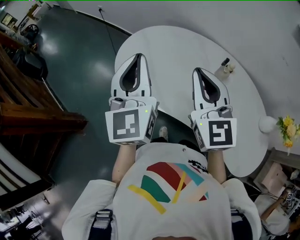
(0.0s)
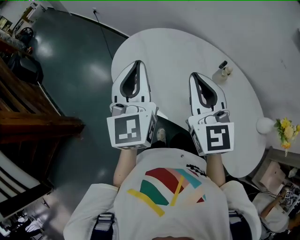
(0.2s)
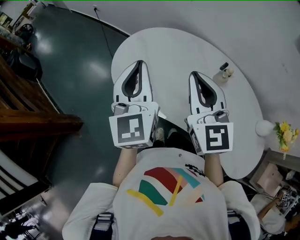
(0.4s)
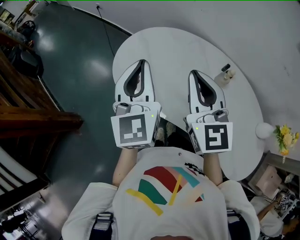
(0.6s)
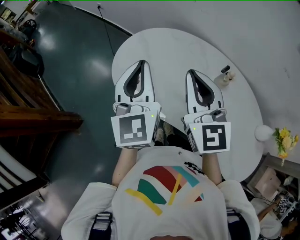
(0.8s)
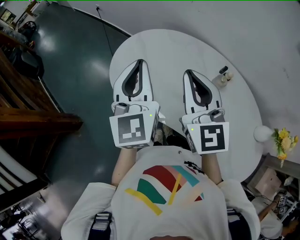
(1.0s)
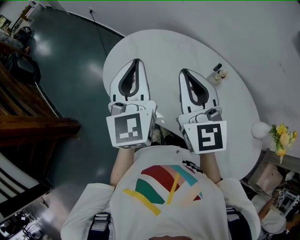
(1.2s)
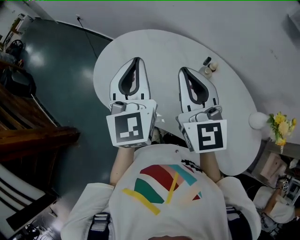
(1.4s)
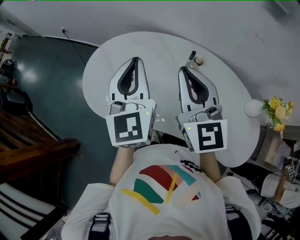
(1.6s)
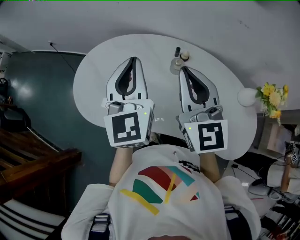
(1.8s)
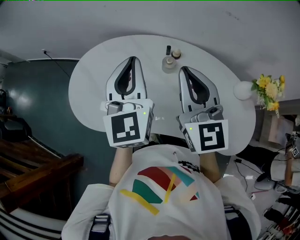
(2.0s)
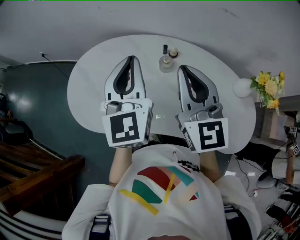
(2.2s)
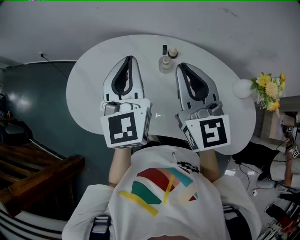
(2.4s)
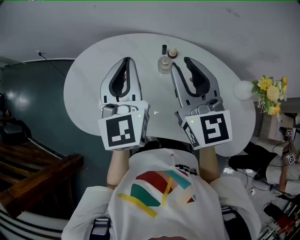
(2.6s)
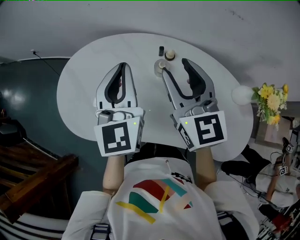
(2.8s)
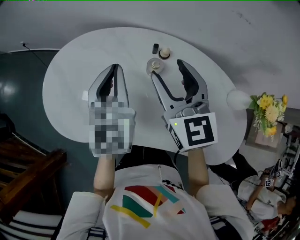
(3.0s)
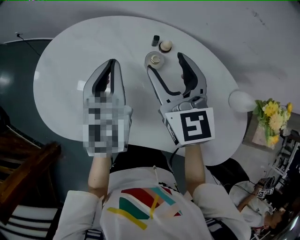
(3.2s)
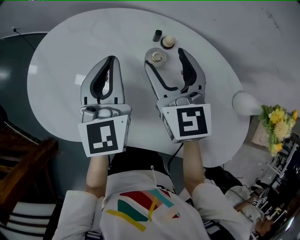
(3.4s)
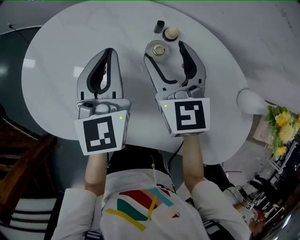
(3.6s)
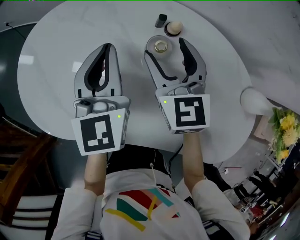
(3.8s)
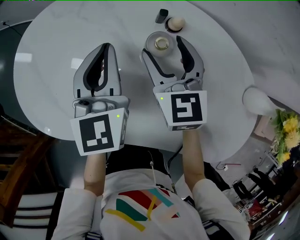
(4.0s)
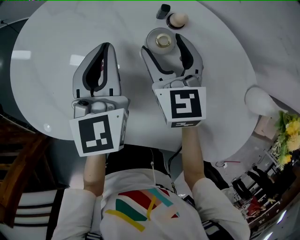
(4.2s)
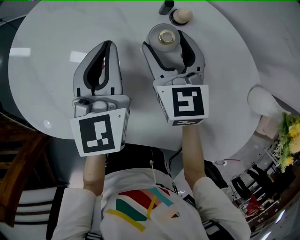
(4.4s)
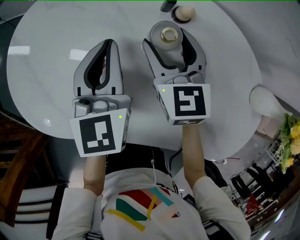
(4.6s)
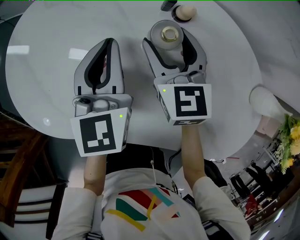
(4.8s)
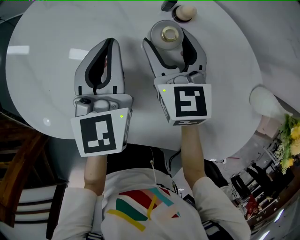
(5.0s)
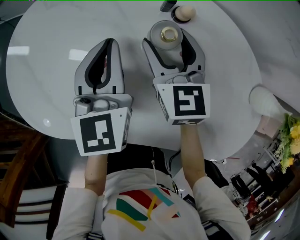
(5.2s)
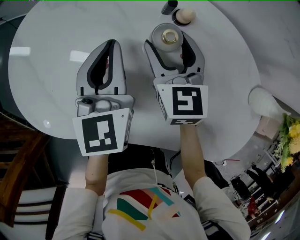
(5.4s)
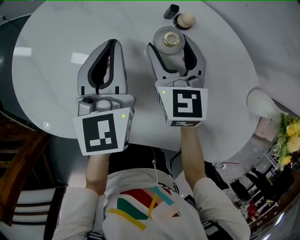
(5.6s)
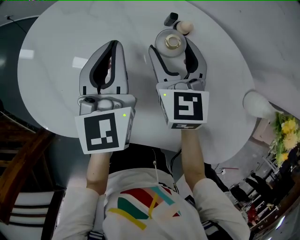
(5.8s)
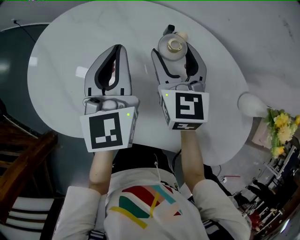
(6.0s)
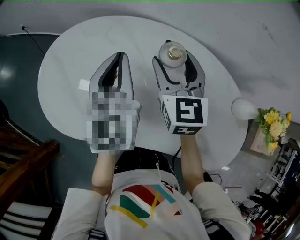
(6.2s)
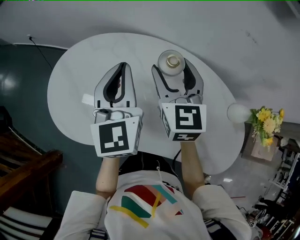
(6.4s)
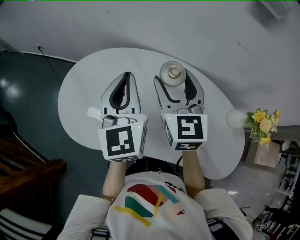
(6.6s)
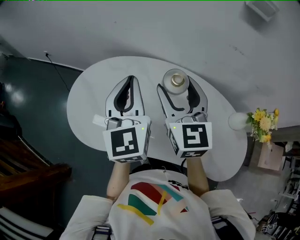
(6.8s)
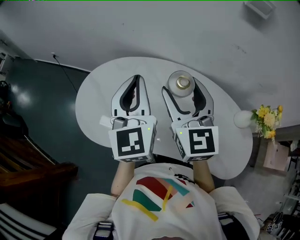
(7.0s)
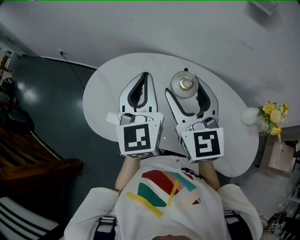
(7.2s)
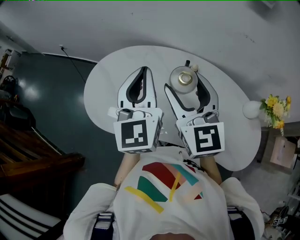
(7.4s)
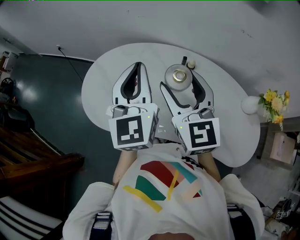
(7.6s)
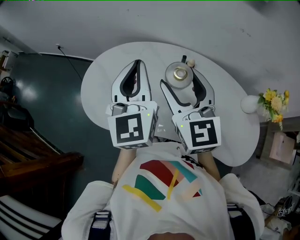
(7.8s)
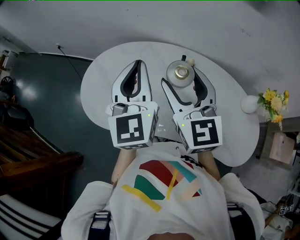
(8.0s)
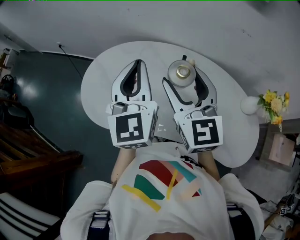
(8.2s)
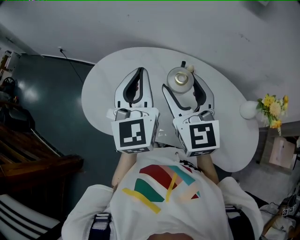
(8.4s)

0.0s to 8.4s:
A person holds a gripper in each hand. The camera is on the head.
0.0s to 1.4s: The right gripper travels to the right by about 5 cm. The left gripper is displaced to the right by approximately 10 cm.
1.4s to 2.8s: The left gripper moves to the right and forward, some 20 cm; the right gripper travels to the right by roughly 15 cm, and opens up.
2.8s to 4.2s: The grippers both shift downward by approximately 25 cm. The right gripper opens.
4.2s to 5.6s: The grippers stay close to where they were, moving slightly.
5.6s to 7.0s: Both grippers move upward, roughly 30 cm. The right gripper rotates roughly 20 degrees, while the left gripper swivels approximately 20 degrees.
7.0s to 8.4s: The right gripper ends up approximately 5 cm from where it was.

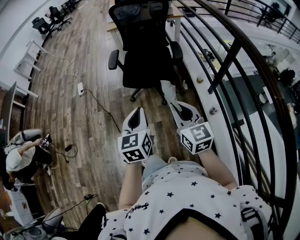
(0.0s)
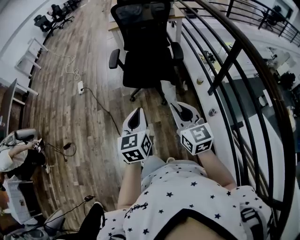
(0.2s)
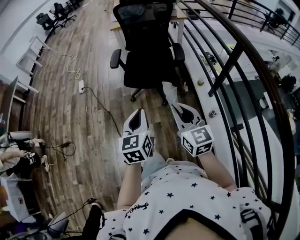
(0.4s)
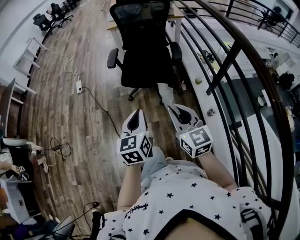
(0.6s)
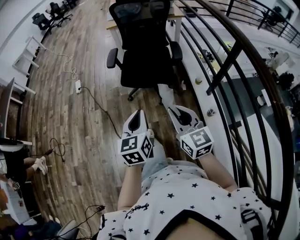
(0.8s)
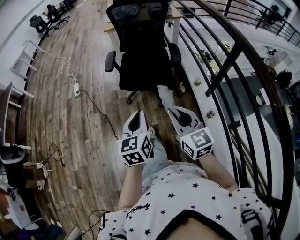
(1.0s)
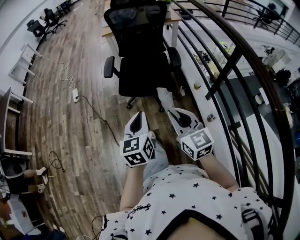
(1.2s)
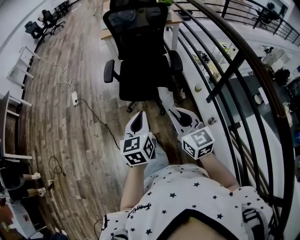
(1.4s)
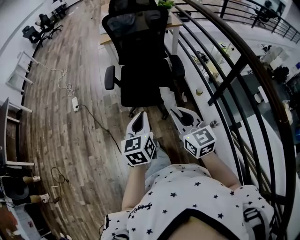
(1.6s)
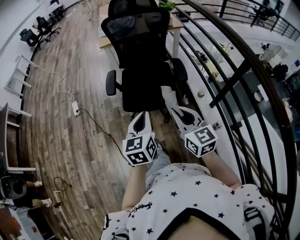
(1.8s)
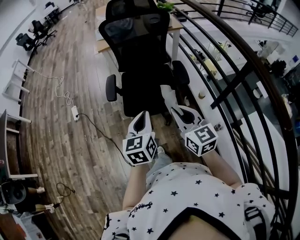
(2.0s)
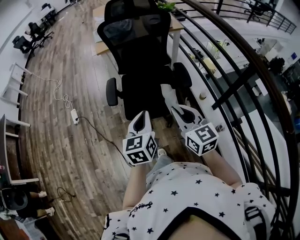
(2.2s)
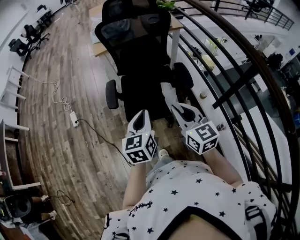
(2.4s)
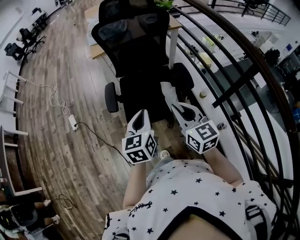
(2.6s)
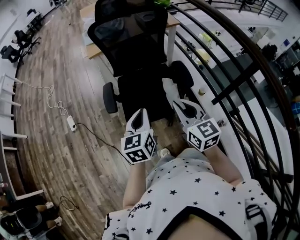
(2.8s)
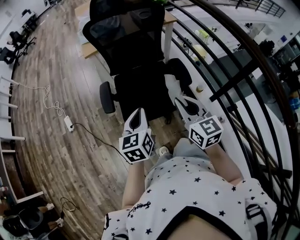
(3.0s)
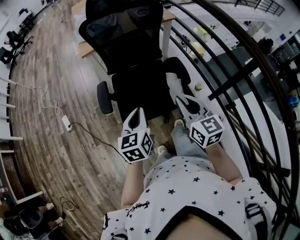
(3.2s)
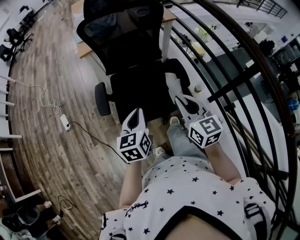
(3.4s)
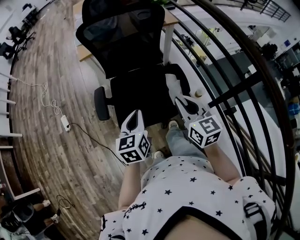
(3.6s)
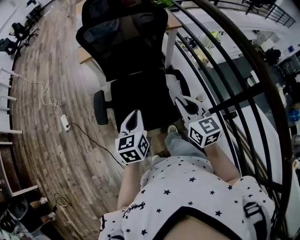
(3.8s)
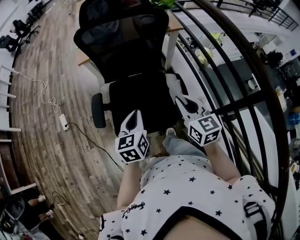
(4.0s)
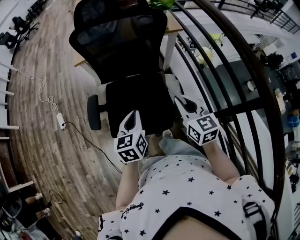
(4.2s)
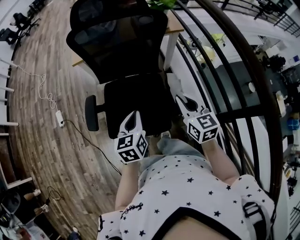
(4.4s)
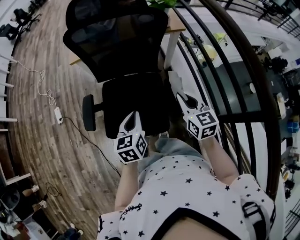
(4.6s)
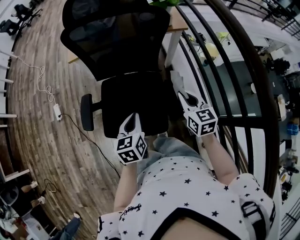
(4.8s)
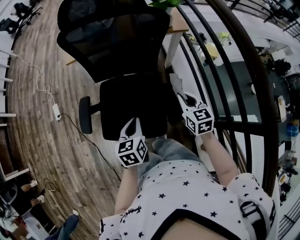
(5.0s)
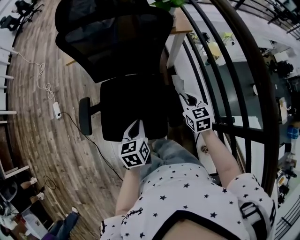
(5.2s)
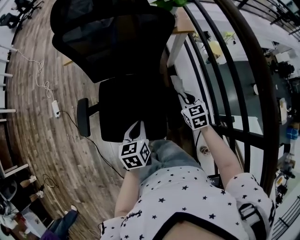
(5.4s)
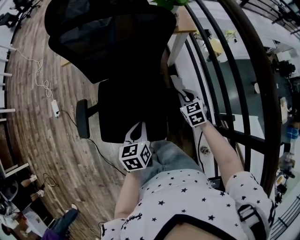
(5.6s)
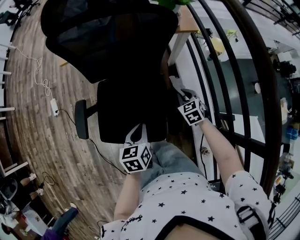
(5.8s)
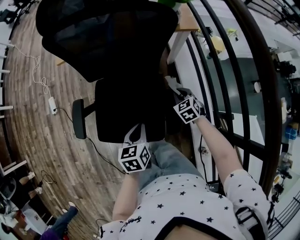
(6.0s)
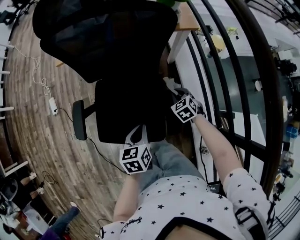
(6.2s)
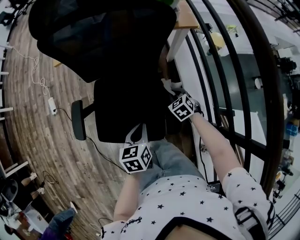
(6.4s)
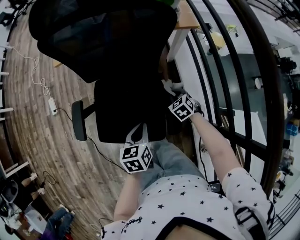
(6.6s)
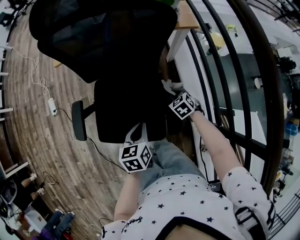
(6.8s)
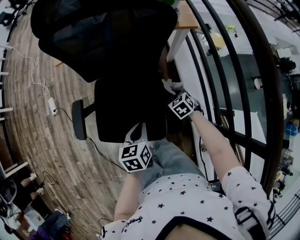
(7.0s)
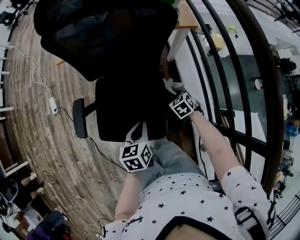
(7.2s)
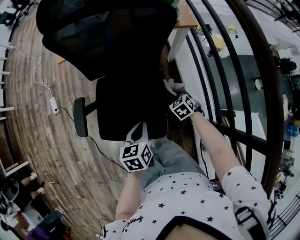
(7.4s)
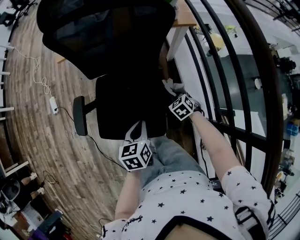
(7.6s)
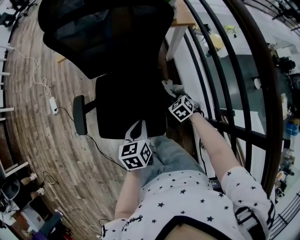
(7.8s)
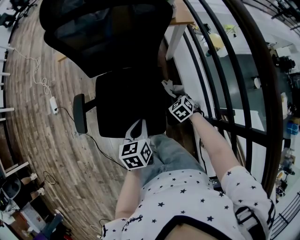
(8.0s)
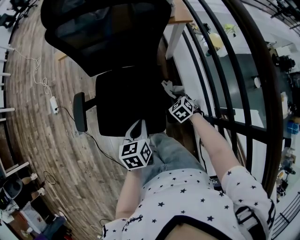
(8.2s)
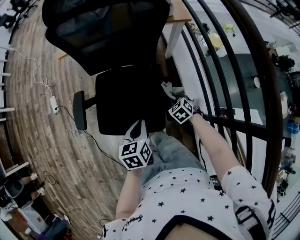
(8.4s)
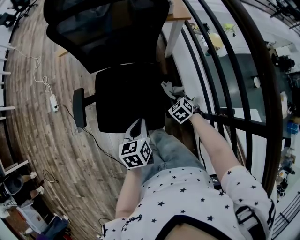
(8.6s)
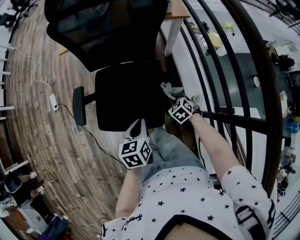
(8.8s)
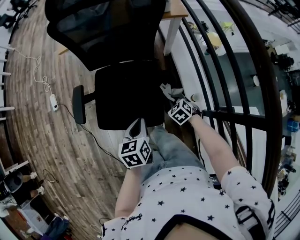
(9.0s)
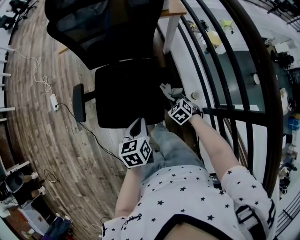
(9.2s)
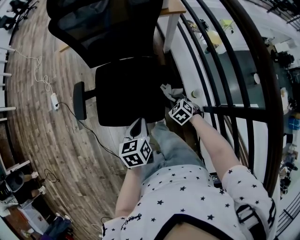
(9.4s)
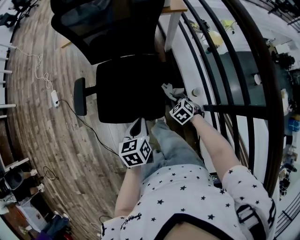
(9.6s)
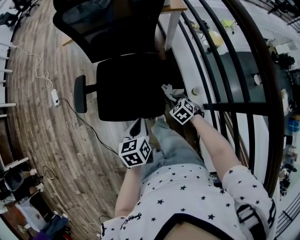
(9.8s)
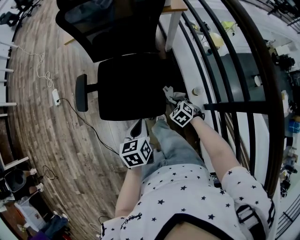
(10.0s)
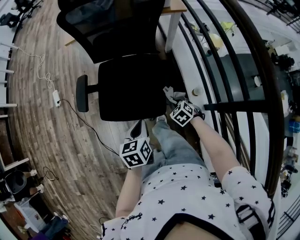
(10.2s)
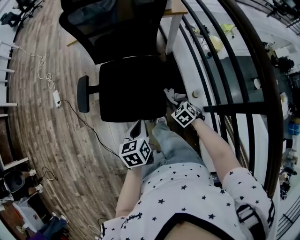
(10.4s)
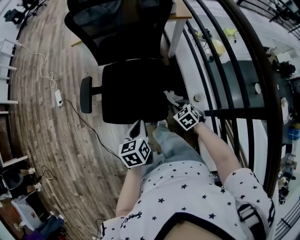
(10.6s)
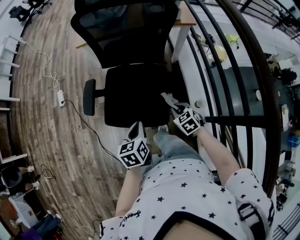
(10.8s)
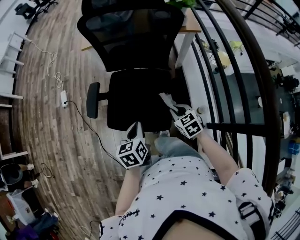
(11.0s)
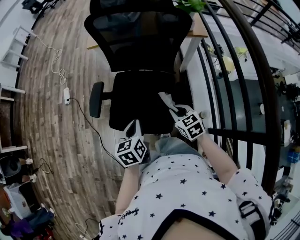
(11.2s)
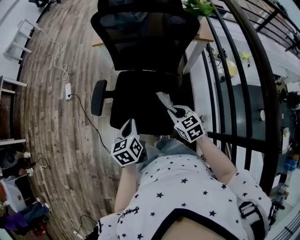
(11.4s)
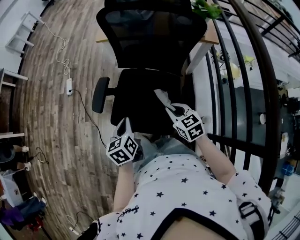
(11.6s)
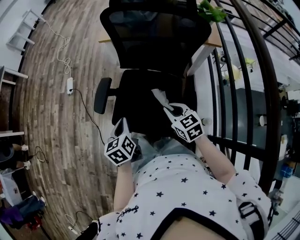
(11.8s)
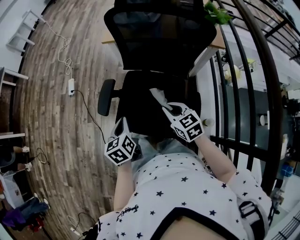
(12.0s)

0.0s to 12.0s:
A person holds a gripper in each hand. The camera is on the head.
0.0s to 1.6s: The grippers both shift forward by roughly 15 cm.
1.6s to 3.0s: Both grippers move forward, about 20 cm.
3.0s to 4.4s: Both grippers move forward and to the right, roughly 20 cm.
4.4s to 6.0s: The right gripper goes some 30 cm downward and forward, and points its fingers approximately 30 degrees further downward, while the left gripper shifts some 10 cm downward and to the right.
6.0s to 7.6s: The right gripper ends up some 5 cm from where it was.
7.6s to 9.0s: The right gripper shifts some 10 cm backward; the left gripper moves backward, approximately 5 cm.
9.0s to 10.4s: Both grippers travel together backward, about 5 cm.
10.4s to 12.0s: The right gripper goes about 25 cm upward, forward and to the left, and rotates roughly 30 degrees. The left gripper goes roughly 20 cm forward and to the left, and rotates approximately 30 degrees.

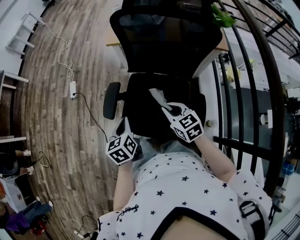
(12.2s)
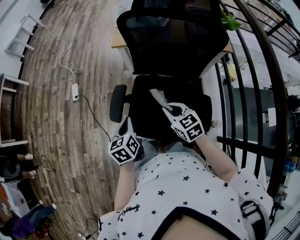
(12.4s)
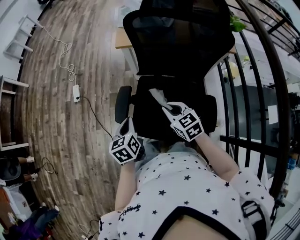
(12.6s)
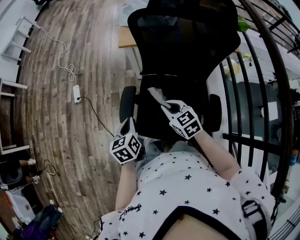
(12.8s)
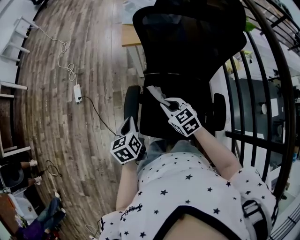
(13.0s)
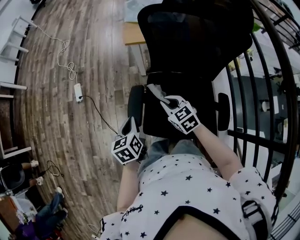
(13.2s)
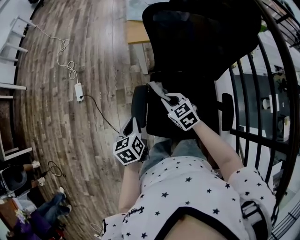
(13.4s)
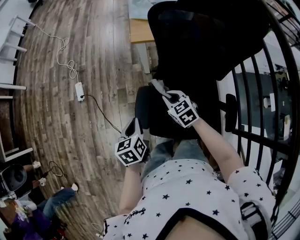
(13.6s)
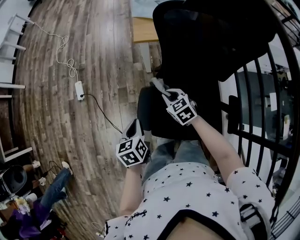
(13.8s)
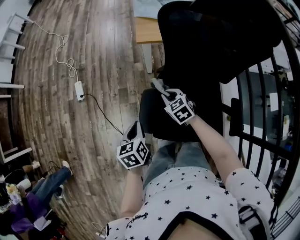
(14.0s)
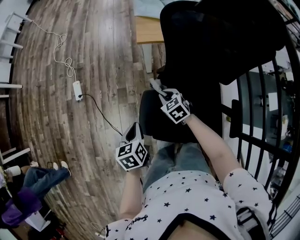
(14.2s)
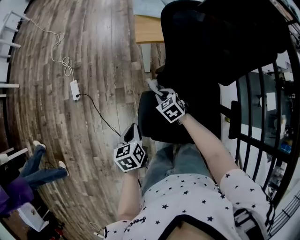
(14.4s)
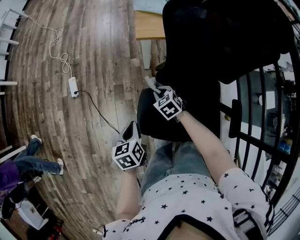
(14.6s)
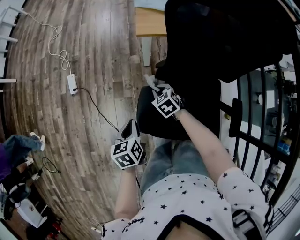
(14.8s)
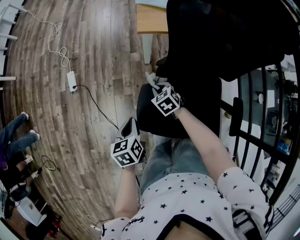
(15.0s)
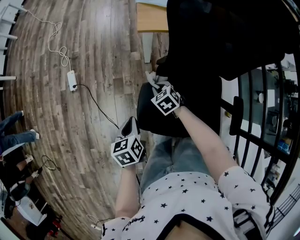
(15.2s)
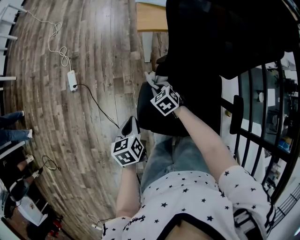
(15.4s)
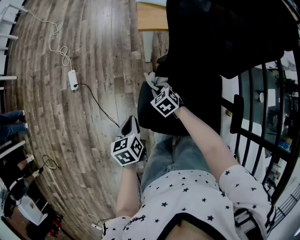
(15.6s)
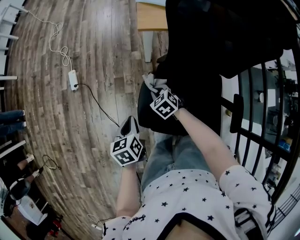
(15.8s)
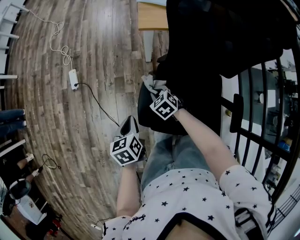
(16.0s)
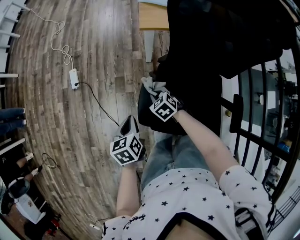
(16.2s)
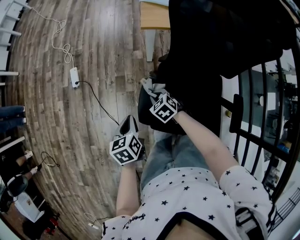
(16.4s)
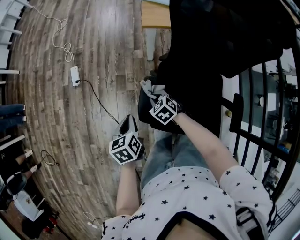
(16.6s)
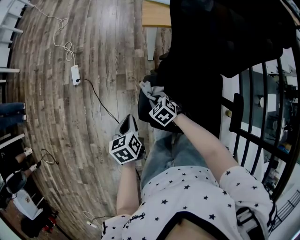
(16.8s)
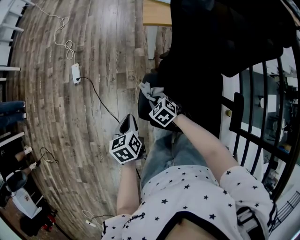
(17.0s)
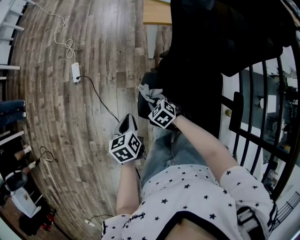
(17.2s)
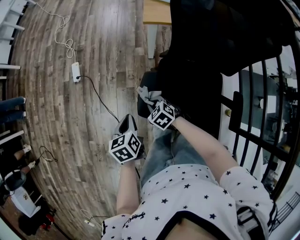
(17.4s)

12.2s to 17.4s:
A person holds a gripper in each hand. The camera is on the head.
12.2s to 14.0s: The left gripper goes about 20 cm to the left, forward and downward. The right gripper heads forward, to the left and downward, covering roughly 30 cm.
14.0s to 15.6s: The right gripper heads downward, covering approximately 5 cm.
15.6s to 17.4s: The right gripper shifts some 10 cm backward and to the left.
